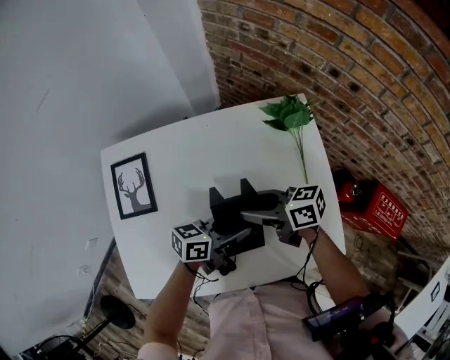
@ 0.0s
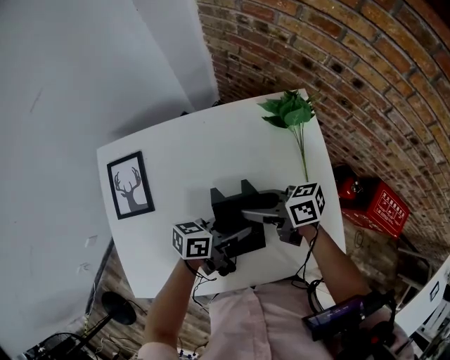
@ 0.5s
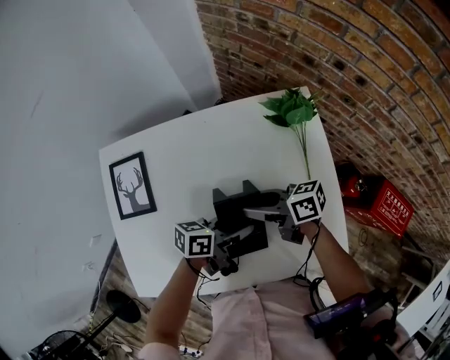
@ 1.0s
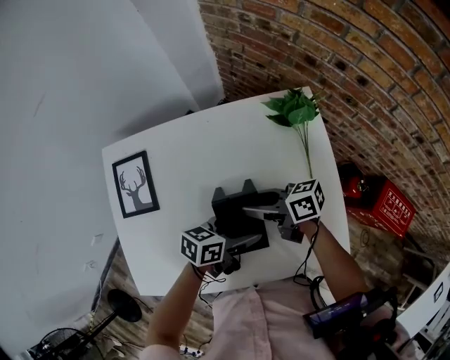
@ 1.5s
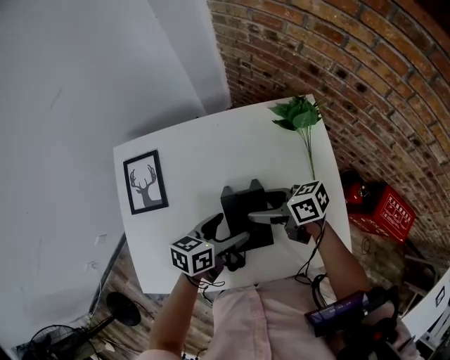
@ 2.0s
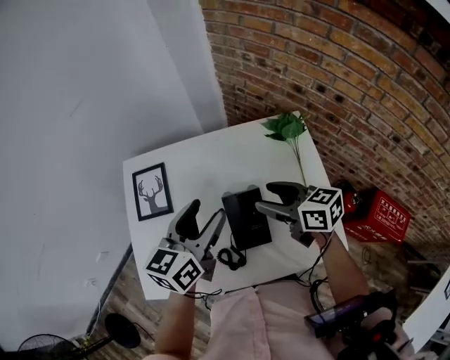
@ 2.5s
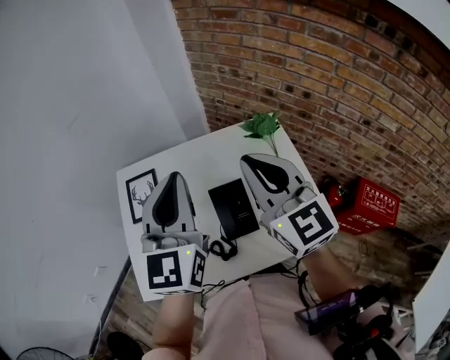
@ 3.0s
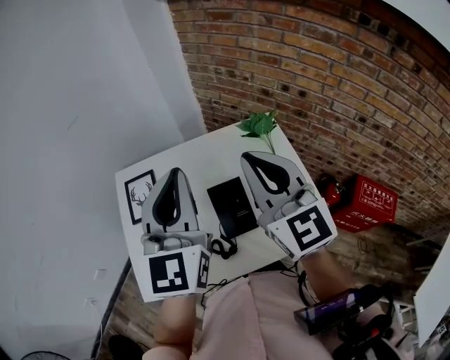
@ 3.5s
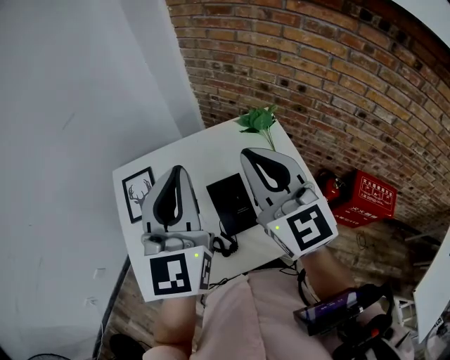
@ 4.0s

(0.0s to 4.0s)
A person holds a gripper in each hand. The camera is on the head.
0.0s - 2.0s: The left gripper ends up approximately 5 cm from where it was, changes its angle by some 20 degrees, and opens up, while the right gripper opens.
2.0s - 4.0s: Both grippers move upward, approximately 35 cm. The left gripper angles its fingers upward, by some 40 degrees, and closes its fingers. The right gripper turns by about 80 degrees, and closes up.

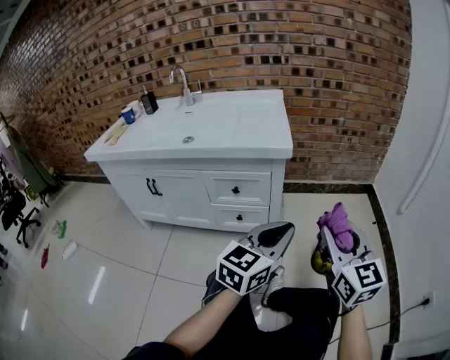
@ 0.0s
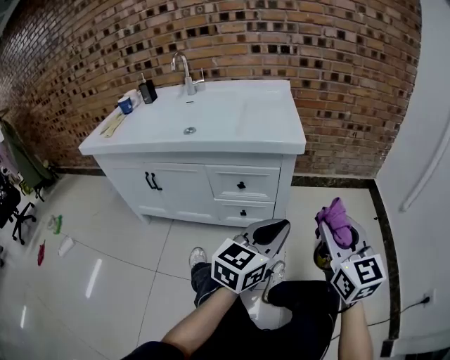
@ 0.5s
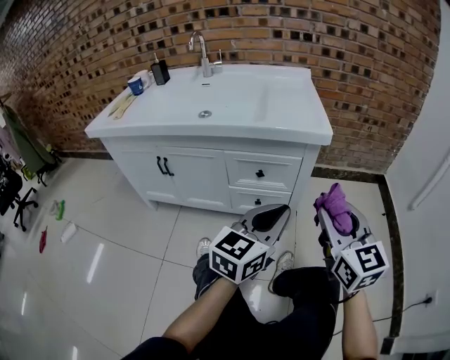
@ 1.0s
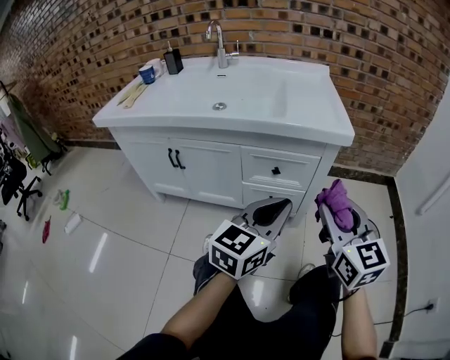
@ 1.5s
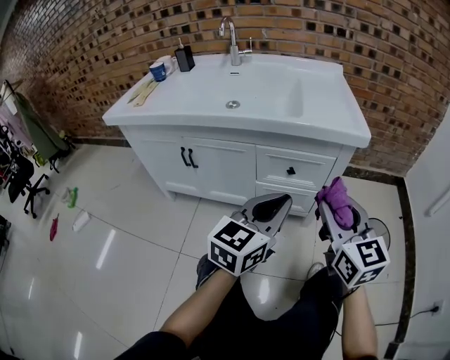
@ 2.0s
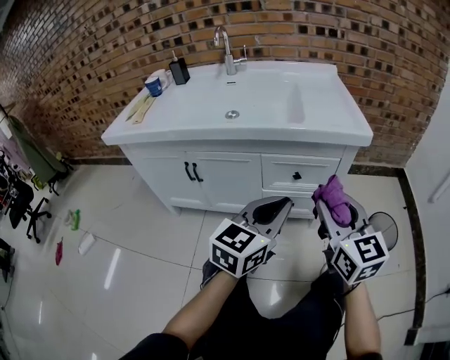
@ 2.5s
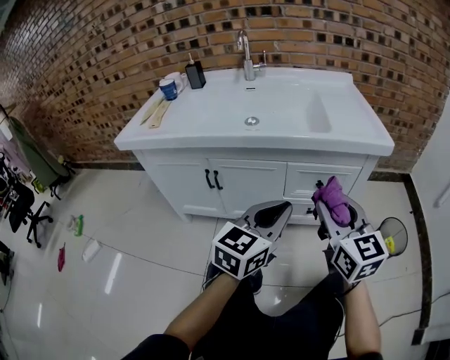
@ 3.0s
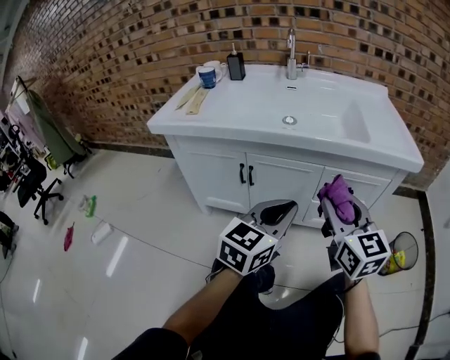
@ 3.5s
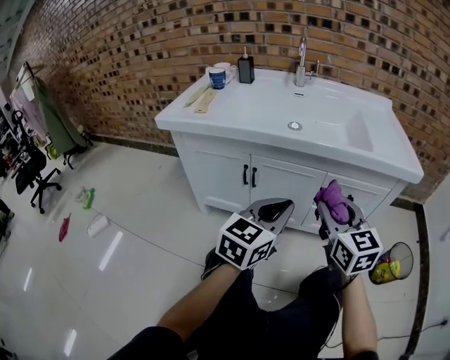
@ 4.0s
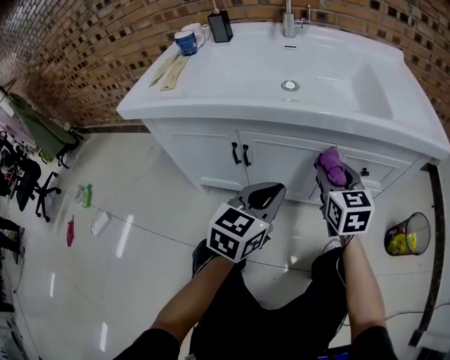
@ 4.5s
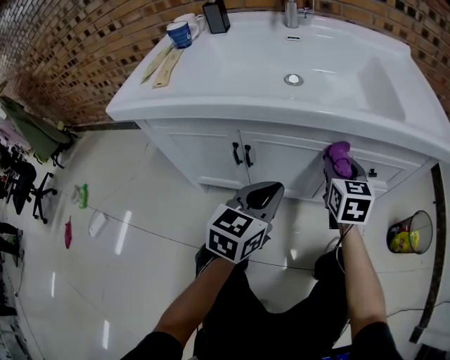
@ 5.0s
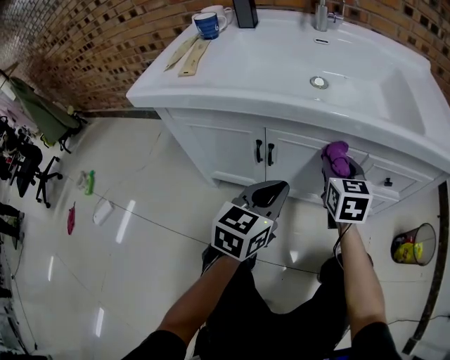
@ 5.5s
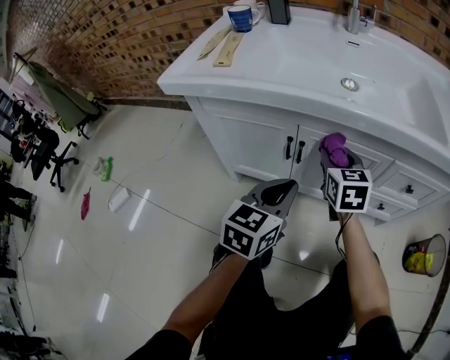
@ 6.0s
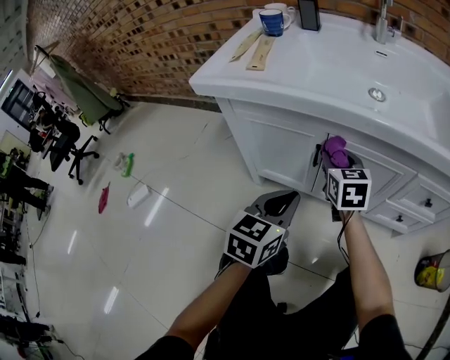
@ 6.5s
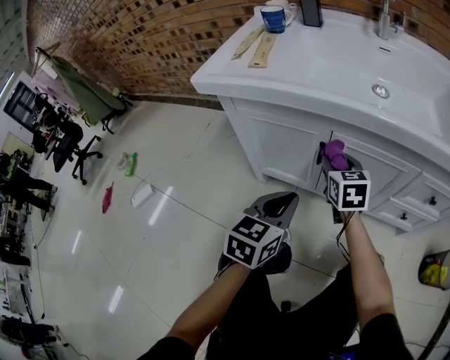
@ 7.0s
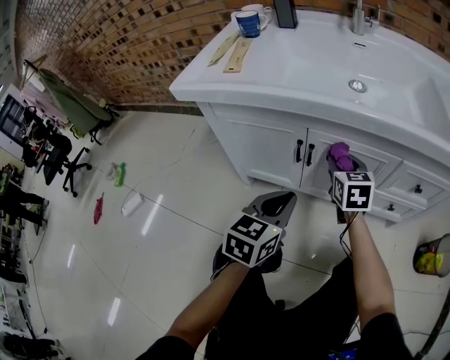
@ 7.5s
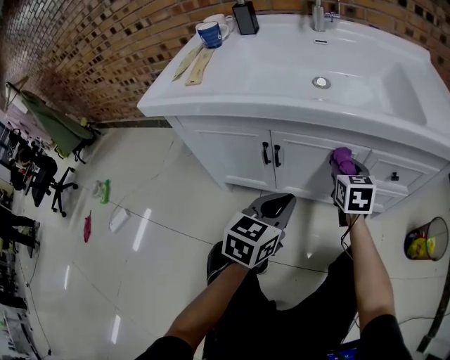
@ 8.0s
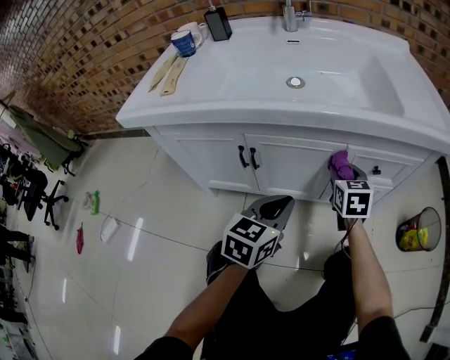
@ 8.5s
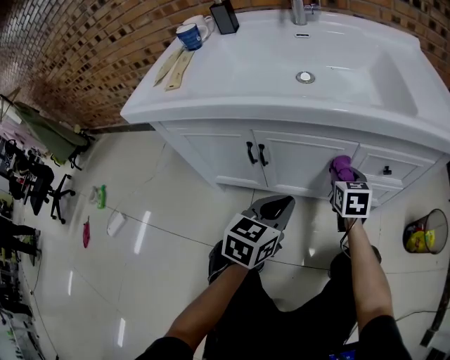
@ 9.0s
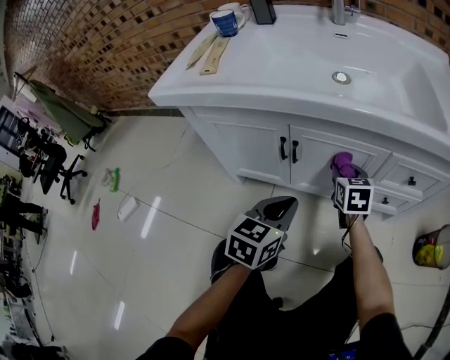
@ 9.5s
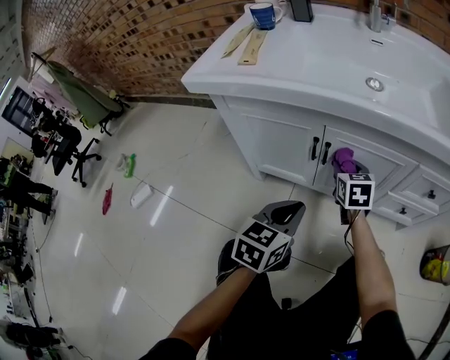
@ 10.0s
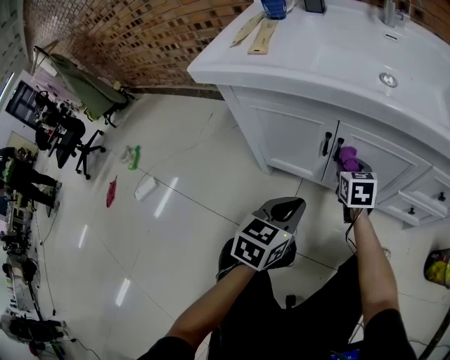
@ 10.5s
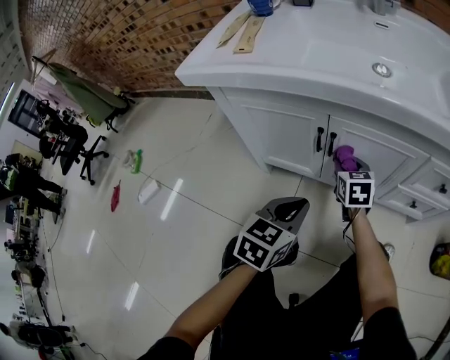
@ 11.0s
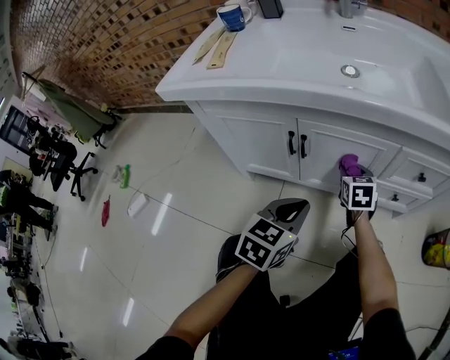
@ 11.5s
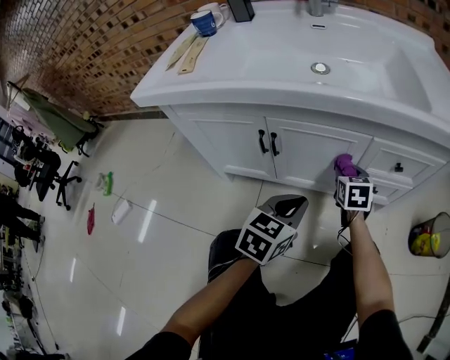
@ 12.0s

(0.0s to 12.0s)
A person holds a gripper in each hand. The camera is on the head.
0.0s - 2.0s: Both grippers move to the left, some 20 cm.
2.0s - 4.0s: Both grippers move to the left, approximately 25 cm.
4.0s - 6.0s: The left gripper is displaced to the left, downward and forward by approximately 20 cm; the right gripper travels forward, to the left and downward by about 30 cm.
6.0s - 8.0s: The left gripper is displaced to the right by some 5 cm. The right gripper shifts about 10 cm to the right.
8.0s - 10.0s: The left gripper heads to the left, covering approximately 10 cm. The right gripper heads to the left and downward, covering roughly 15 cm.
10.0s - 12.0s: Both grippers move to the right, about 15 cm.

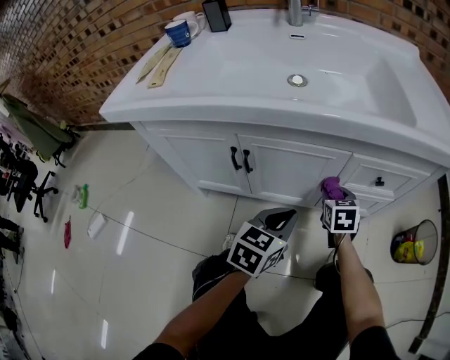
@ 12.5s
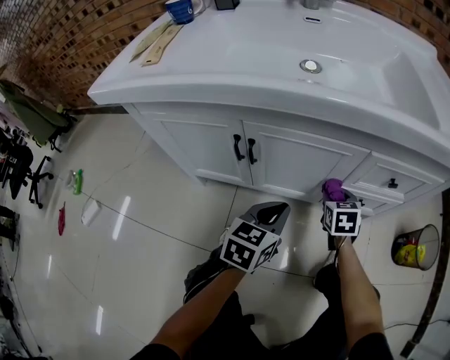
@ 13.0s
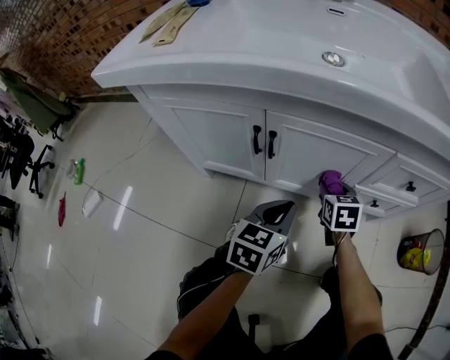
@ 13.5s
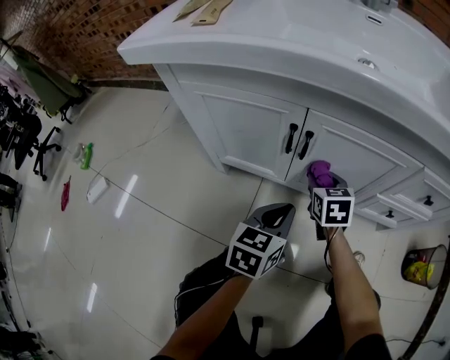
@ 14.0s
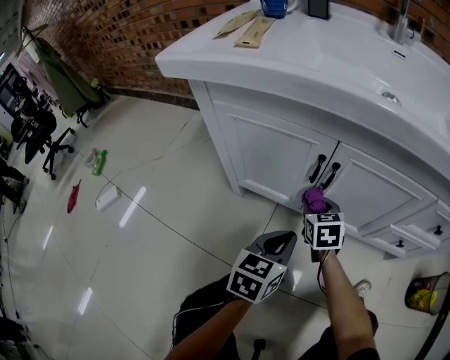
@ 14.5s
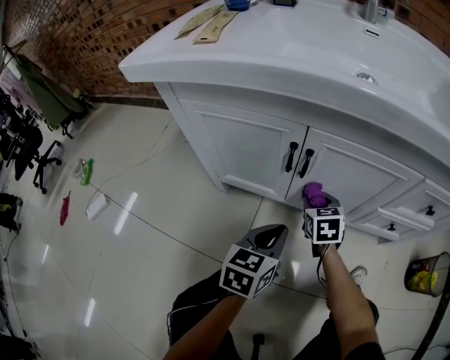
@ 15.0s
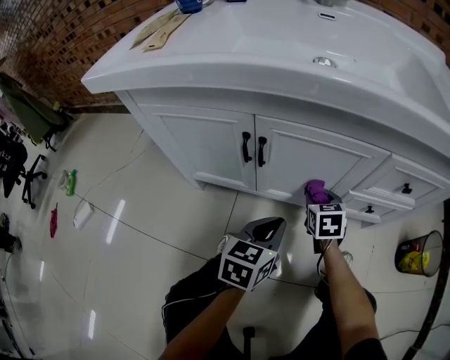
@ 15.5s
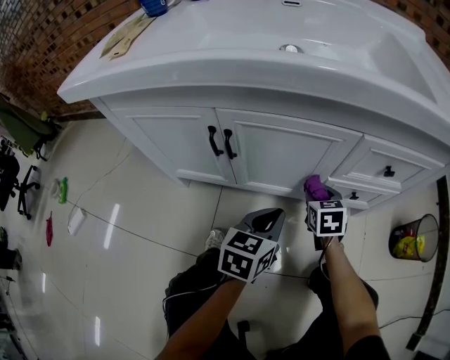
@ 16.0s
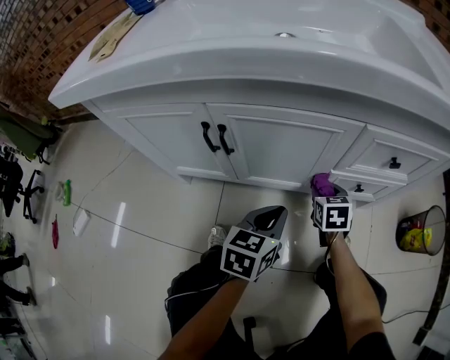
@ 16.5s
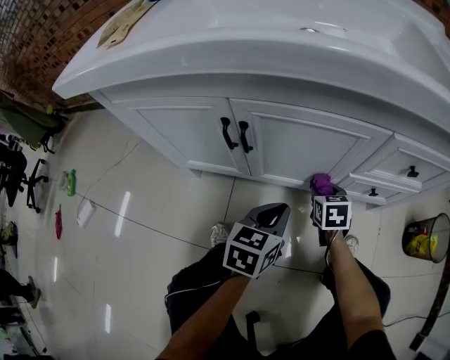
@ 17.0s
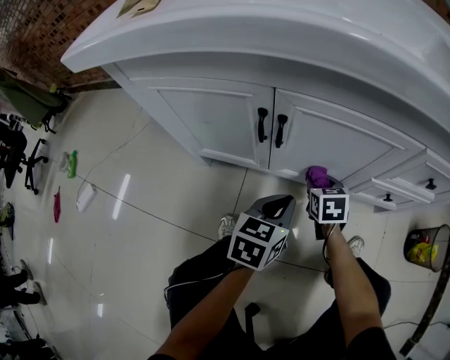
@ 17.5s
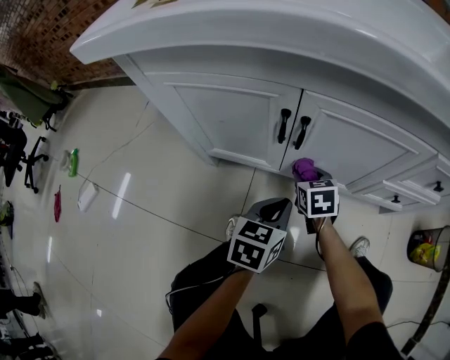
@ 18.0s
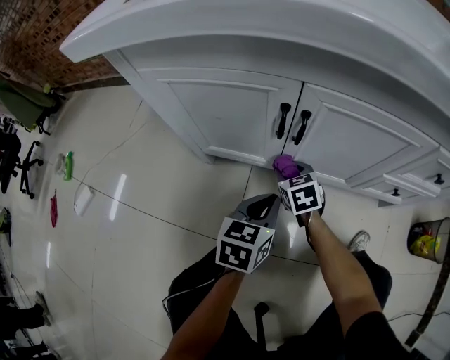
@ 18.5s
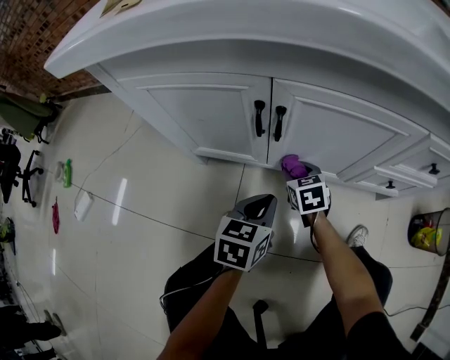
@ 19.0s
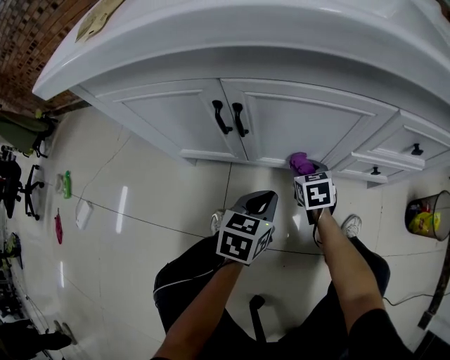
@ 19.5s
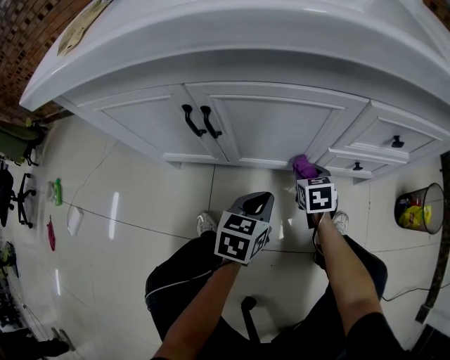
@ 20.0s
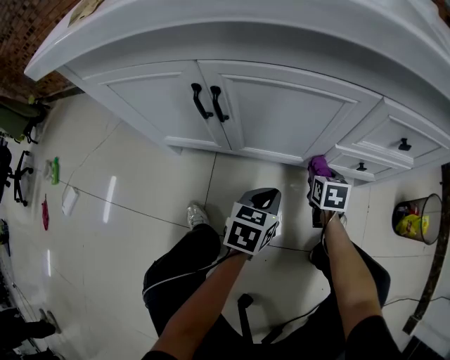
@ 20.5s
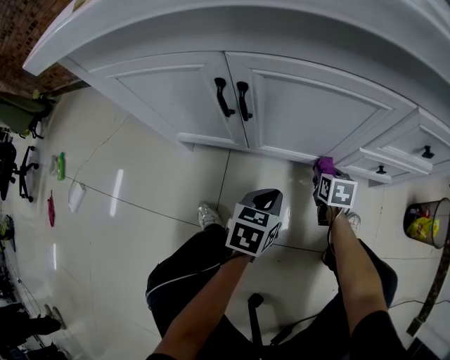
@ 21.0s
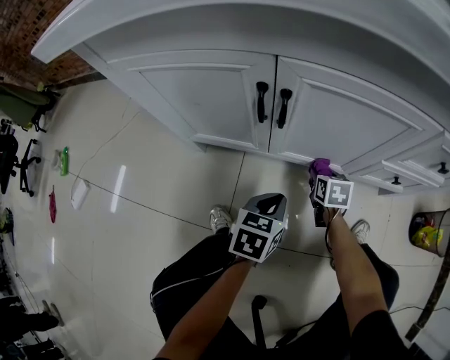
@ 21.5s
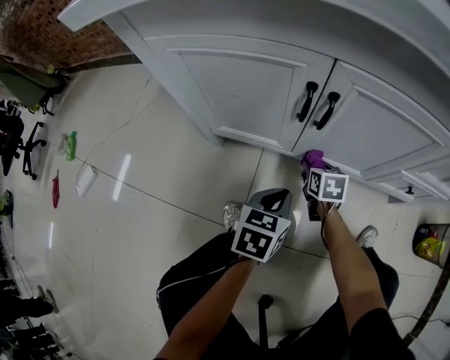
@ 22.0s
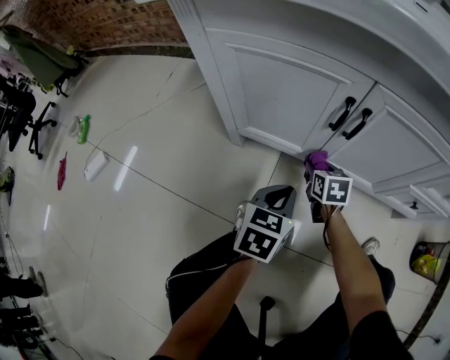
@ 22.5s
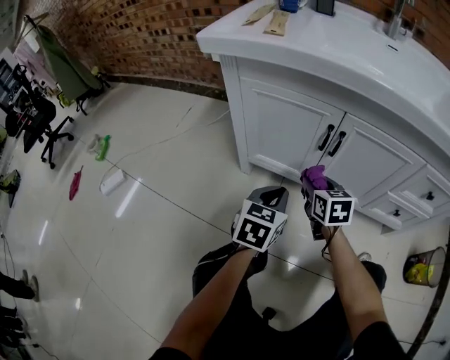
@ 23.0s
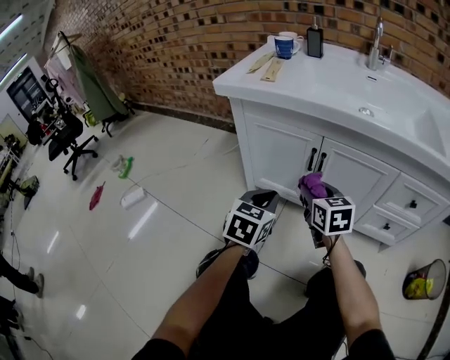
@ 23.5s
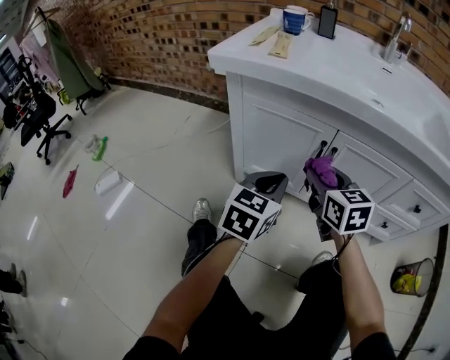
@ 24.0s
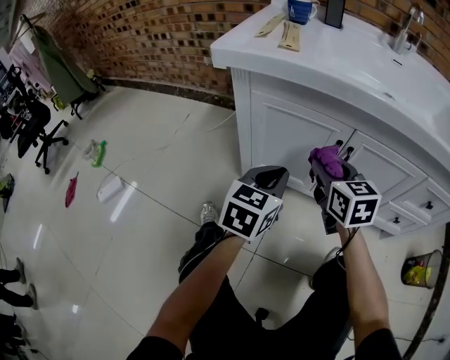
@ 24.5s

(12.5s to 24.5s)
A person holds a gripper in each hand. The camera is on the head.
12.5s - 14.5s: The right gripper moves to the left, roughly 30 cm. Meanwhile the left gripper travels to the left and downward by approximately 20 cm.
14.5s - 16.5s: The left gripper travels to the right by some 15 cm. The right gripper moves to the right, approximately 25 cm.
16.5s - 18.5s: The right gripper travels to the left by some 25 cm, and swivels roughly 20 degrees. Meanwhile the left gripper heads to the left, covering approximately 15 cm.
18.5s - 20.5s: The right gripper moves to the right, about 30 cm, and swivels roughly 30 degrees. The left gripper travels to the right by some 15 cm.
20.5s - 22.5s: Both grippers move to the left, about 25 cm.
22.5s - 24.5s: The left gripper is displaced upward and to the left by roughly 20 cm; the right gripper moves upward, some 30 cm, and rotates approximately 30 degrees.
